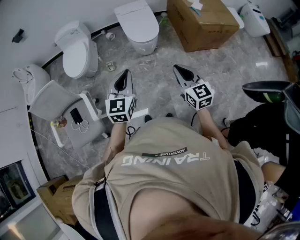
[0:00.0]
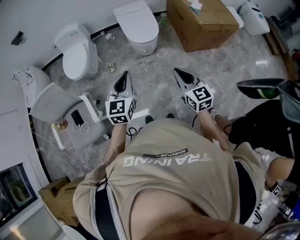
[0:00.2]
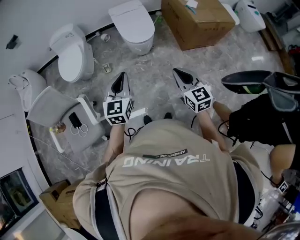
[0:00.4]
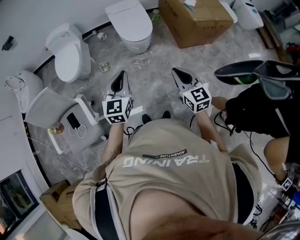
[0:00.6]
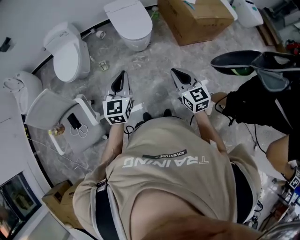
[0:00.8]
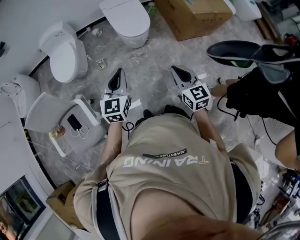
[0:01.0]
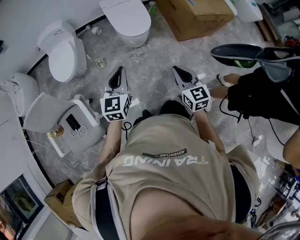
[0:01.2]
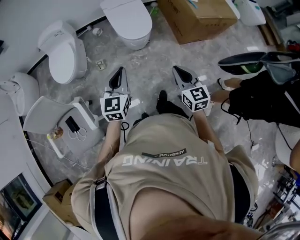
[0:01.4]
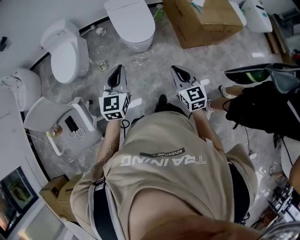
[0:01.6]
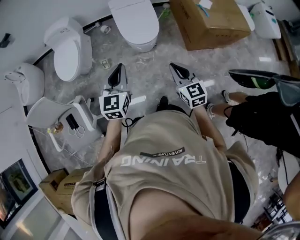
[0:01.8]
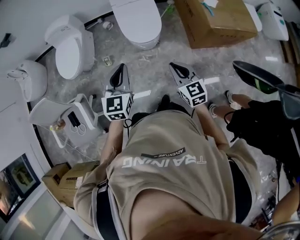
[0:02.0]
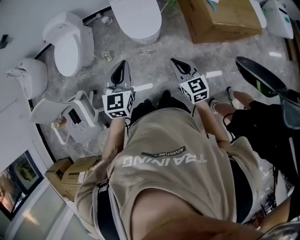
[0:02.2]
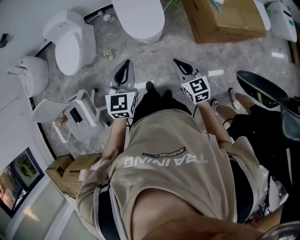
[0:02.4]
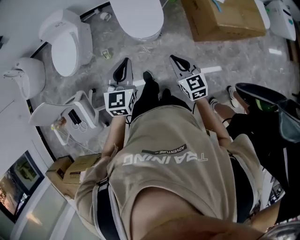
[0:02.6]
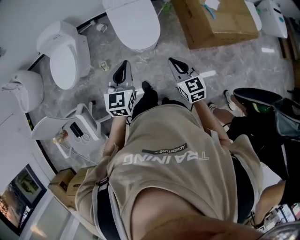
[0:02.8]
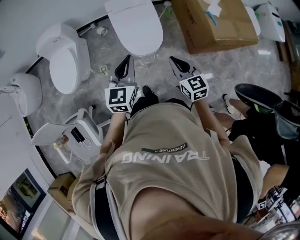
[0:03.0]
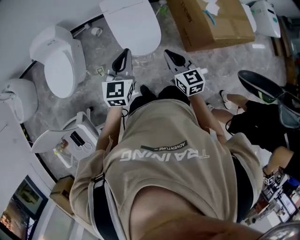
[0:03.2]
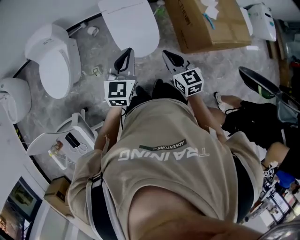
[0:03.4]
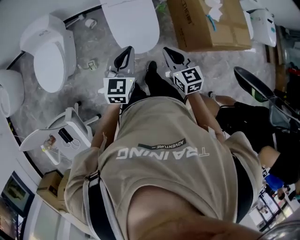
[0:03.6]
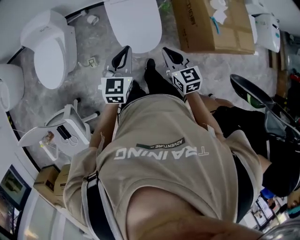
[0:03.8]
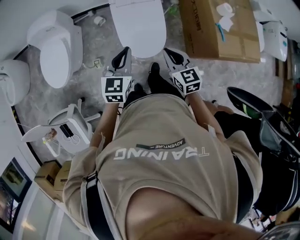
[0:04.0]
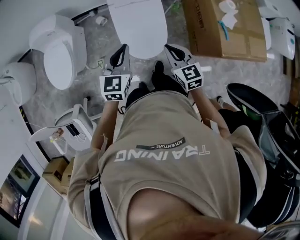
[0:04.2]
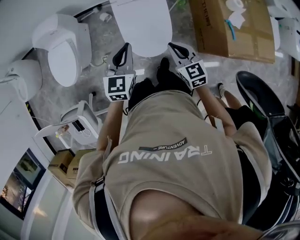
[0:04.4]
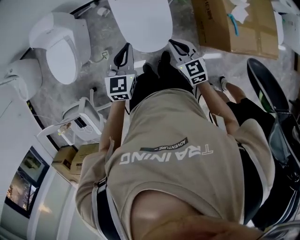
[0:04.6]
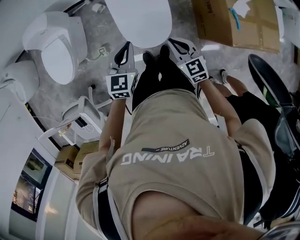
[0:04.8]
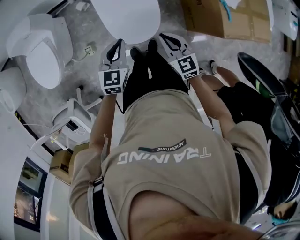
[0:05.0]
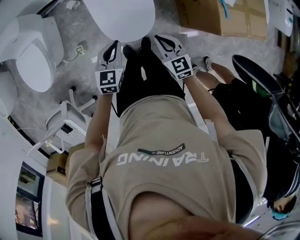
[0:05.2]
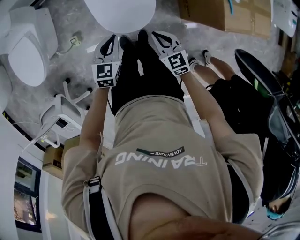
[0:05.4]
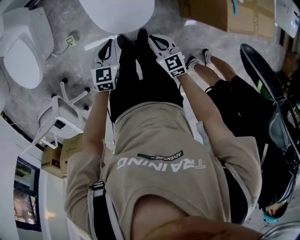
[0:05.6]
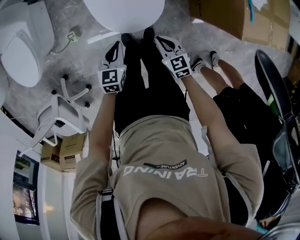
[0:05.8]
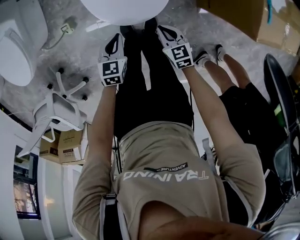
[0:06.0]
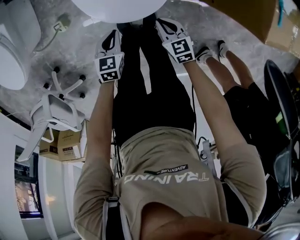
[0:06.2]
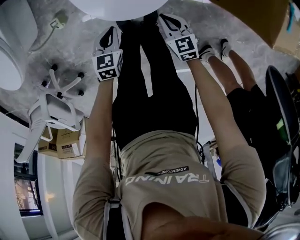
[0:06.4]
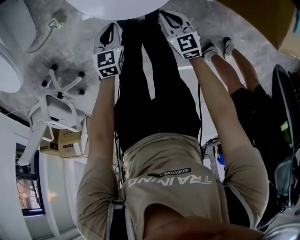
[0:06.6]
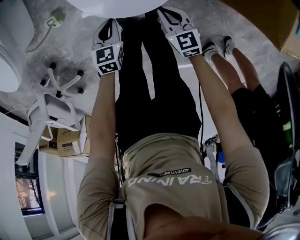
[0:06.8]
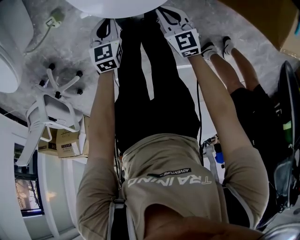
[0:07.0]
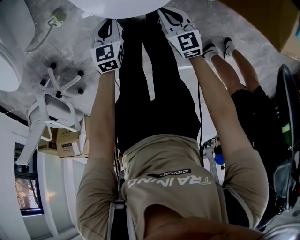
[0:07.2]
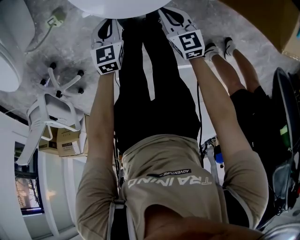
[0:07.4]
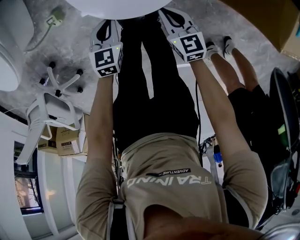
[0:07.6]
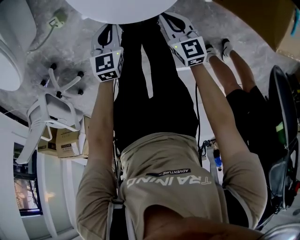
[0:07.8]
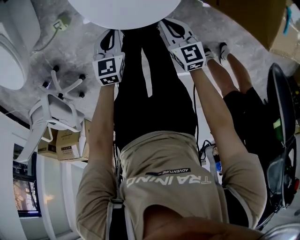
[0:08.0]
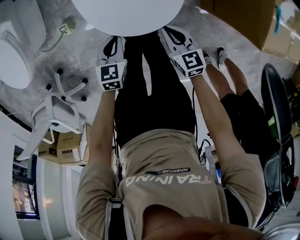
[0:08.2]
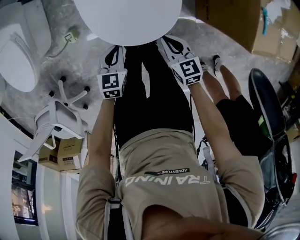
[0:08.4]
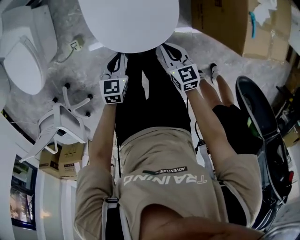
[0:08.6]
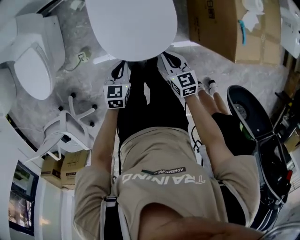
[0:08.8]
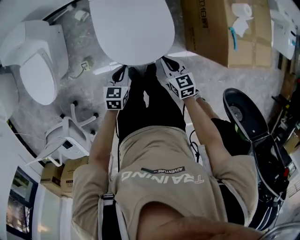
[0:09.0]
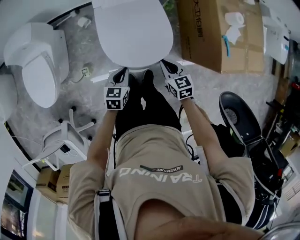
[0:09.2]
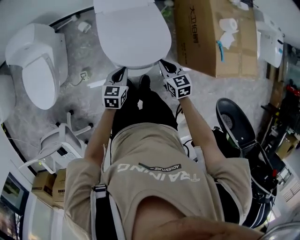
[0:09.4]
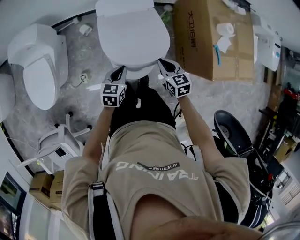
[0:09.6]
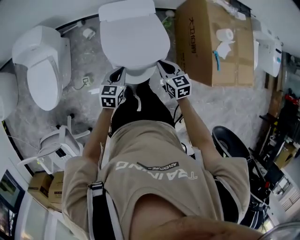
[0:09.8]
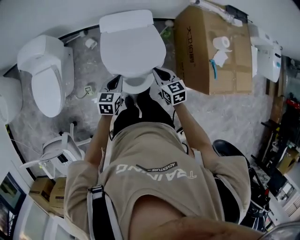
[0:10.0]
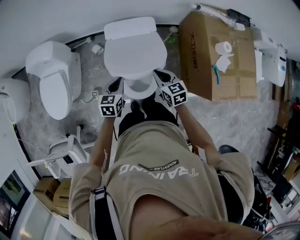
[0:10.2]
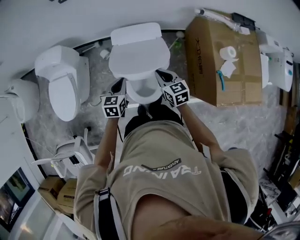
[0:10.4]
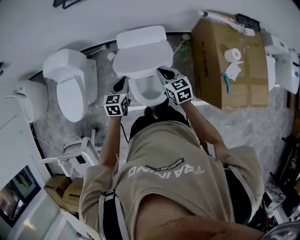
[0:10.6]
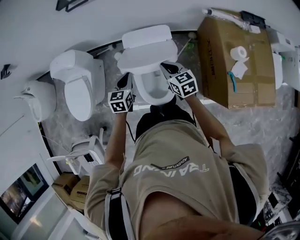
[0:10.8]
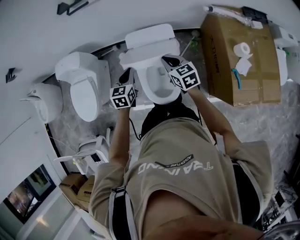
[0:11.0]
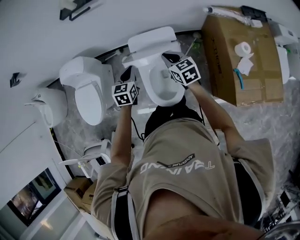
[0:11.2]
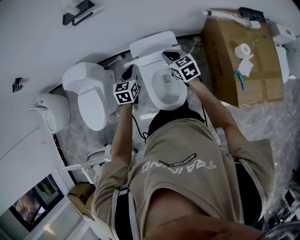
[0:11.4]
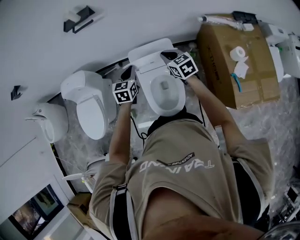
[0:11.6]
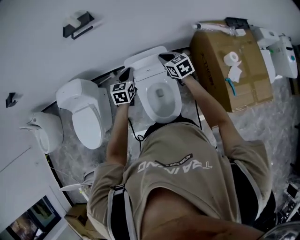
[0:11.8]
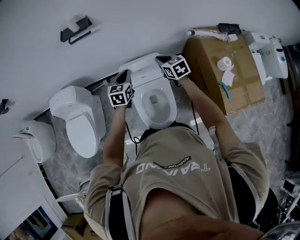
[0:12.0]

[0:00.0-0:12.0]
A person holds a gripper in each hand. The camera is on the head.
0:00.0 to 0:01.6: The left gripper goes about 15 cm forward, while the right gripper heads forward and downward, covering approximately 15 cm.
0:01.6 to 0:03.0: Both grippers move forward, approximately 25 cm.
0:03.0 to 0:04.4: Both grippers move forward, approximately 20 cm.
0:04.4 to 0:06.0: The two grippers go roughly 40 cm downward. The left gripper turns by some 30 degrees. The right gripper changes its angle by about 20 degrees.
0:06.0 to 0:07.6: The left gripper is displaced downward by some 10 cm.
0:07.6 to 0:09.0: The two grippers go approximately 25 cm upward.
0:09.0 to 0:10.4: The right gripper heads forward and upward, covering about 20 cm. Meanwhile the left gripper is displaced upward and forward by some 20 cm.
0:10.4 to 0:12.0: The right gripper travels forward by about 20 cm; the left gripper is displaced forward and upward by approximately 20 cm.

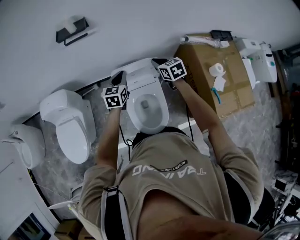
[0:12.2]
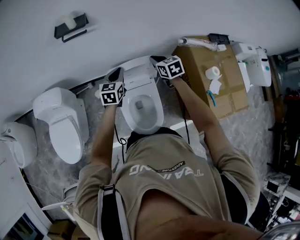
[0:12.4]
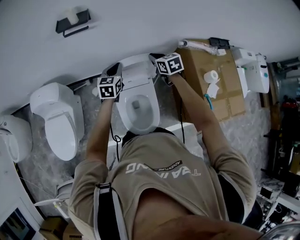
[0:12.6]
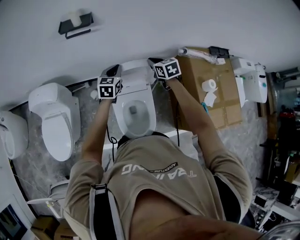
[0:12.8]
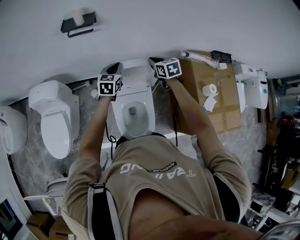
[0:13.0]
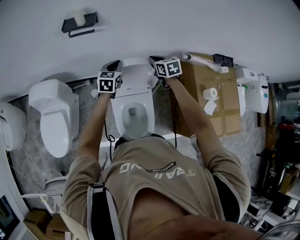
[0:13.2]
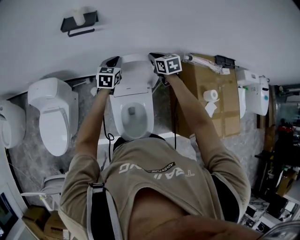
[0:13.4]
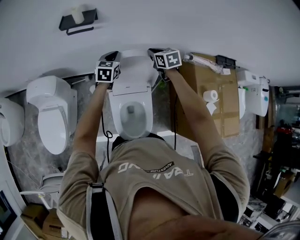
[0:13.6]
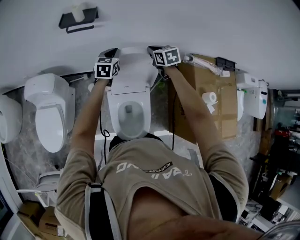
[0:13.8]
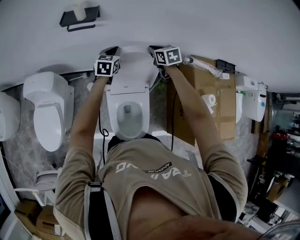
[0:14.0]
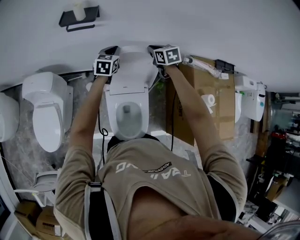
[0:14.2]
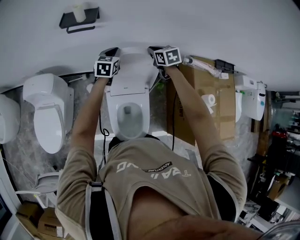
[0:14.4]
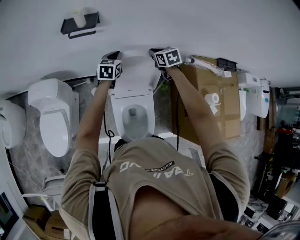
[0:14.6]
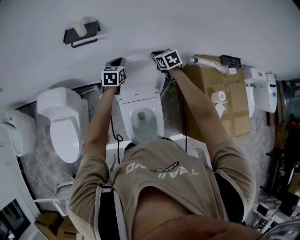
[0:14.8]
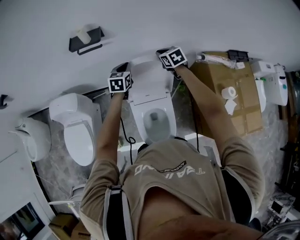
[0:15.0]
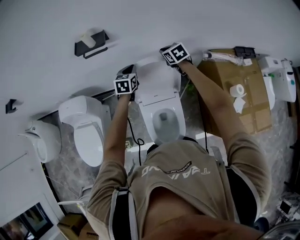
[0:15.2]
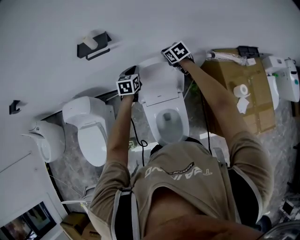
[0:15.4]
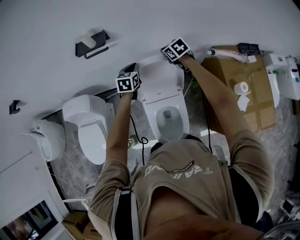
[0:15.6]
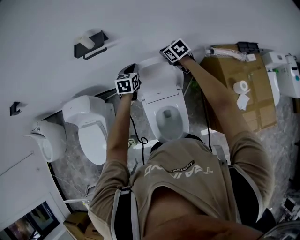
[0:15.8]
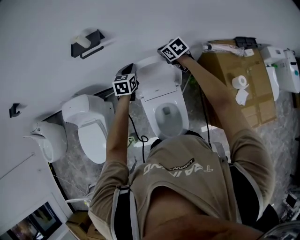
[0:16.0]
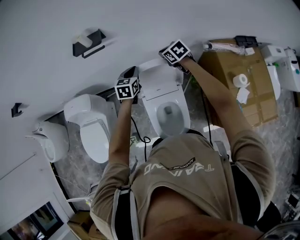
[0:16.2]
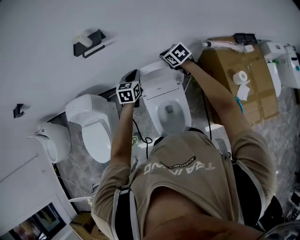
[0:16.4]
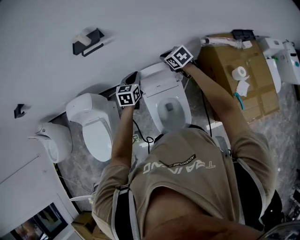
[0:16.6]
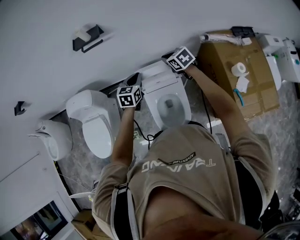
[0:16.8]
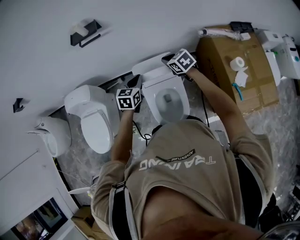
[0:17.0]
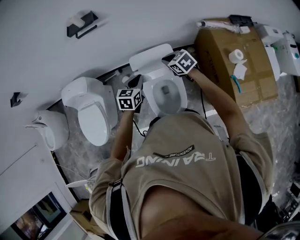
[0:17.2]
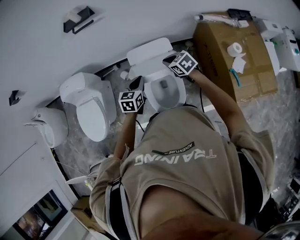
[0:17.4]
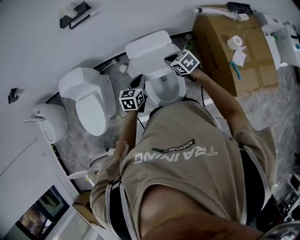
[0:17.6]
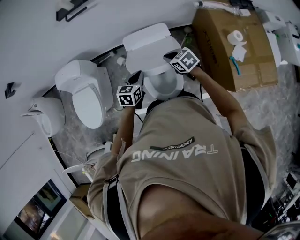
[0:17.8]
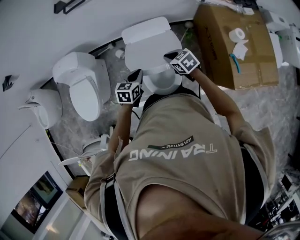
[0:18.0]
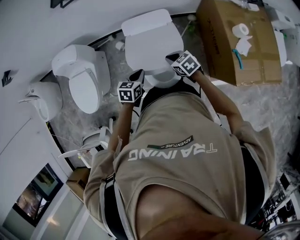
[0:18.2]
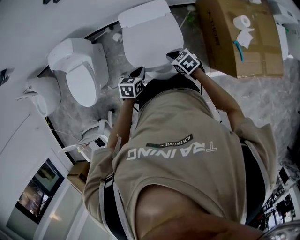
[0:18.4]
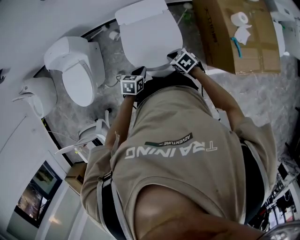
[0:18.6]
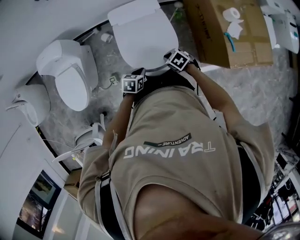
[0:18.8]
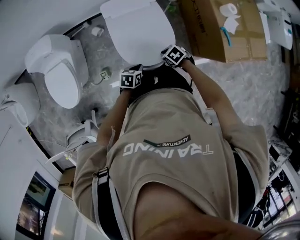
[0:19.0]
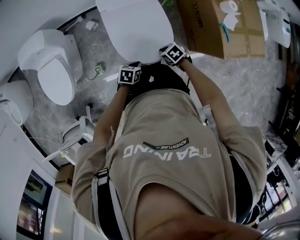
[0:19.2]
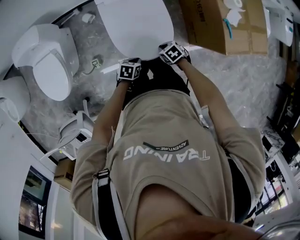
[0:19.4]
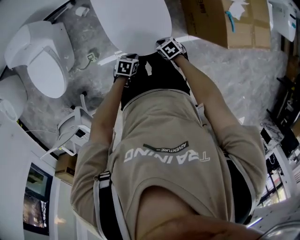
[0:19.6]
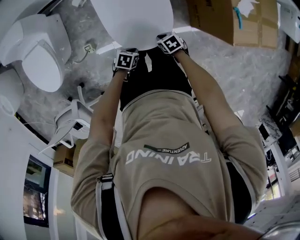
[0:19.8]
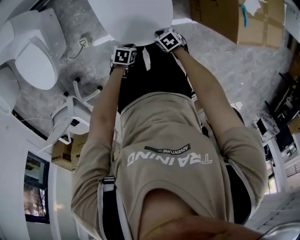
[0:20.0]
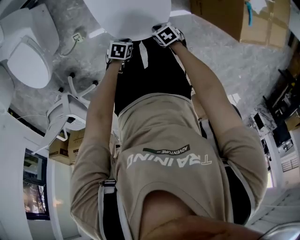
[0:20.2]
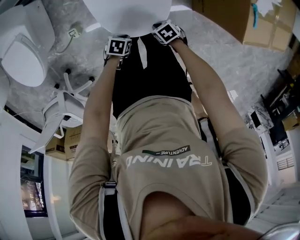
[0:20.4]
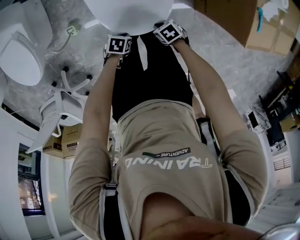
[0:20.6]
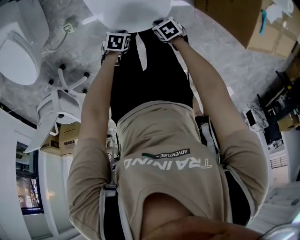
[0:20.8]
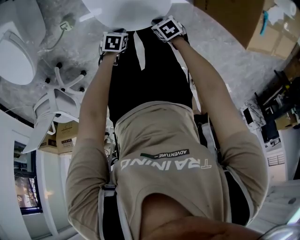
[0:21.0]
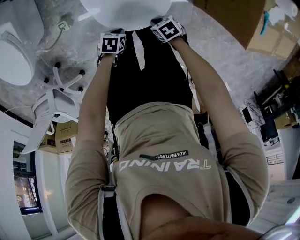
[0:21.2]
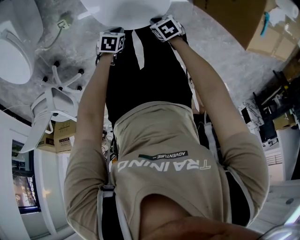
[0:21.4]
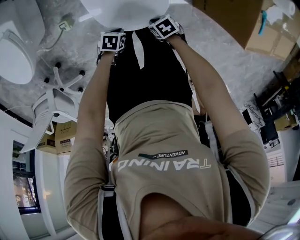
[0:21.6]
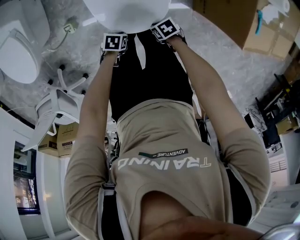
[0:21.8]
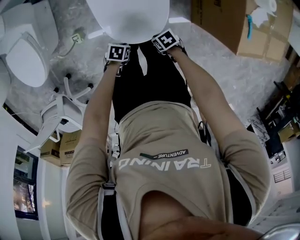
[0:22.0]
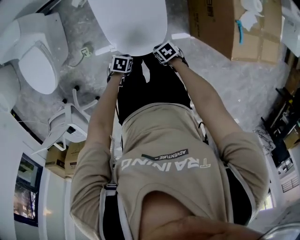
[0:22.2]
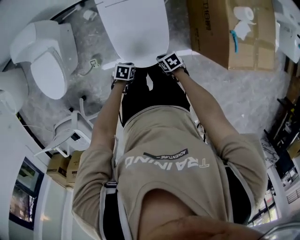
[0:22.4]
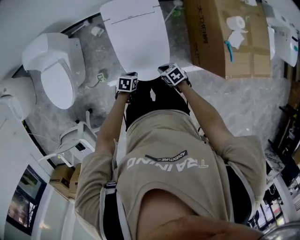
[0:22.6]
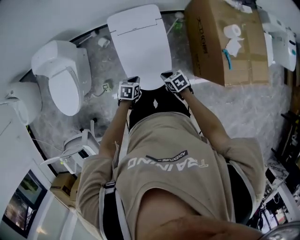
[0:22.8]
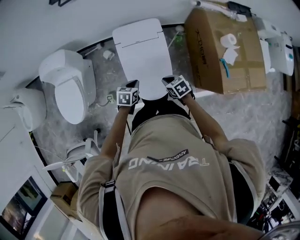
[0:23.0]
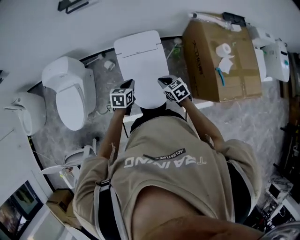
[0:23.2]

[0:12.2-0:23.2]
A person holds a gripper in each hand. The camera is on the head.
0:12.2 to 0:13.8: The grippers both shift forward by roughly 15 cm.
0:13.8 to 0:15.4: There are only small adjustments of the grippers.
0:15.4 to 0:17.0: Both grippers travel together backward, some 20 cm.
0:17.0 to 0:18.4: Both grippers travel together backward and downward, roughly 25 cm. The left gripper rotates approximately 20 degrees.
0:18.4 to 0:20.0: Both grippers move downward, some 25 cm. The right gripper swivels approximately 30 degrees. Meanwhile the left gripper changes its angle by some 30 degrees.
0:20.0 to 0:21.6: Both grippers move downward, roughly 10 cm.
0:21.6 to 0:23.2: Both grippers travel together upward, some 40 cm. The right gripper rotates approximately 40 degrees; the left gripper swivels roughly 40 degrees.

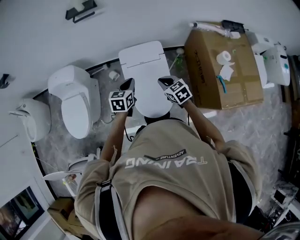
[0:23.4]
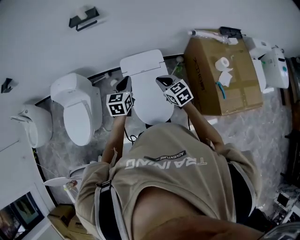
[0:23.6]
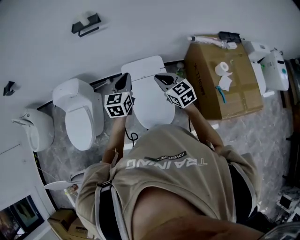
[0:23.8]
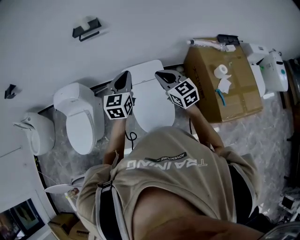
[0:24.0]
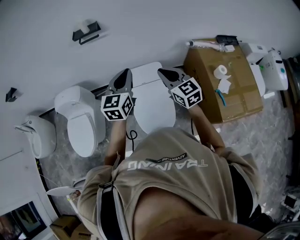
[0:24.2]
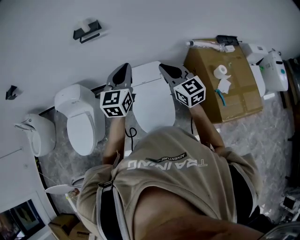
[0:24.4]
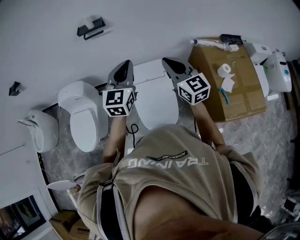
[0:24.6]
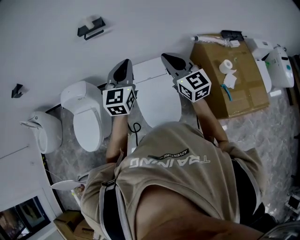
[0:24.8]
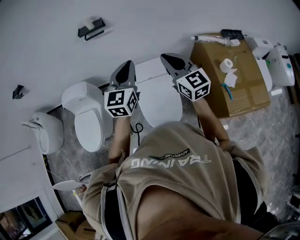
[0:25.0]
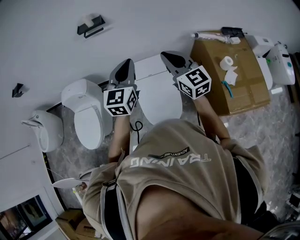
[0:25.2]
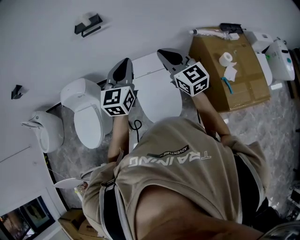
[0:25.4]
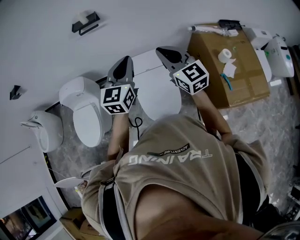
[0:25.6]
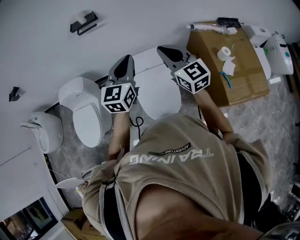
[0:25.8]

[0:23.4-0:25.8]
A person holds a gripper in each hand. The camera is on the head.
0:23.4 to 0:24.6: The grippers both shift upward by about 25 cm. The right gripper angles its fingers upward, by roughly 40 degrees, while the left gripper tilts its fingers some 30 degrees upward.
0:24.6 to 0:25.8: The grippers make only small movements.
